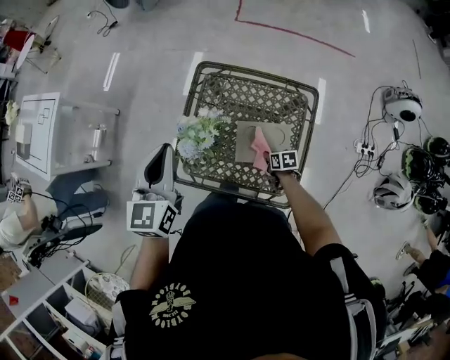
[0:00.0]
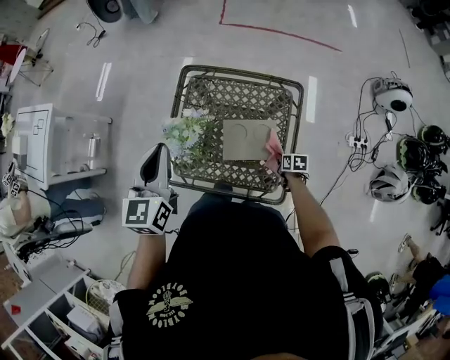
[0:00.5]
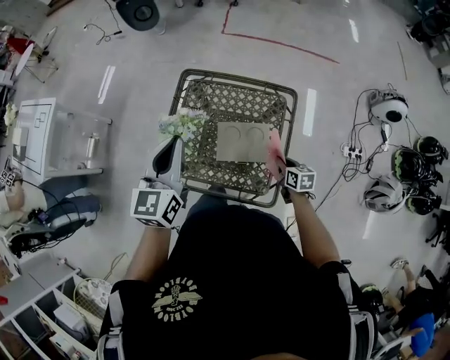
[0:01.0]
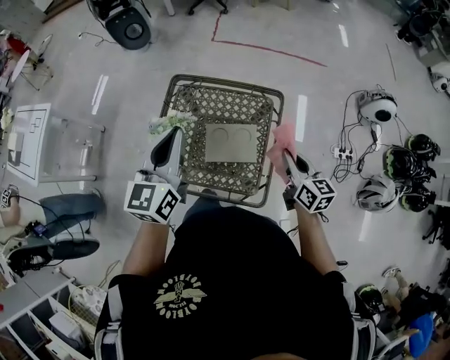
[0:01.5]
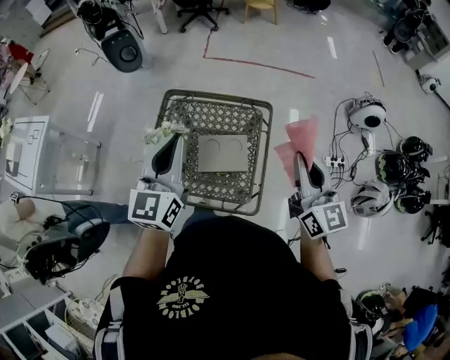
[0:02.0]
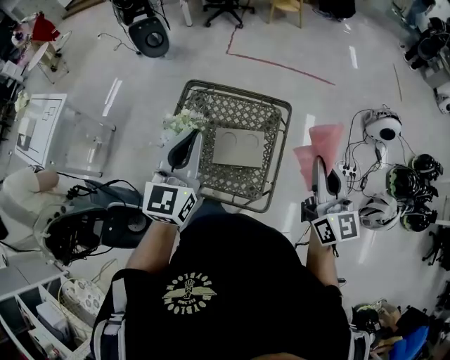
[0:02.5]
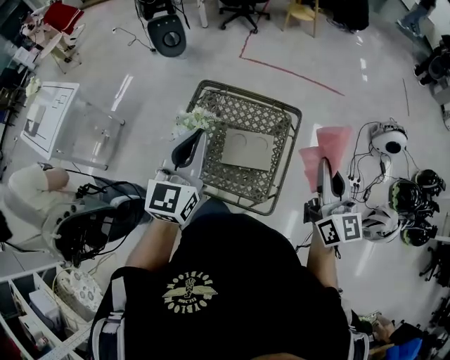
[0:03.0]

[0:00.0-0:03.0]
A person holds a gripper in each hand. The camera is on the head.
0:00.0 to 0:01.5: The right gripper is displaced upward and to the right by about 35 cm, and points its fingers approximately 40 degrees further upward, while the left gripper shifts some 15 cm to the right and backward.
0:01.5 to 0:03.0: The right gripper travels upward by about 20 cm, and rotates some 30 degrees; the left gripper goes some 5 cm backward.

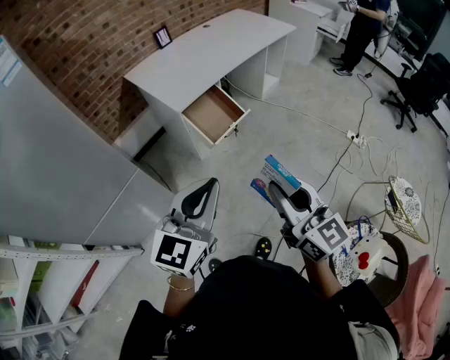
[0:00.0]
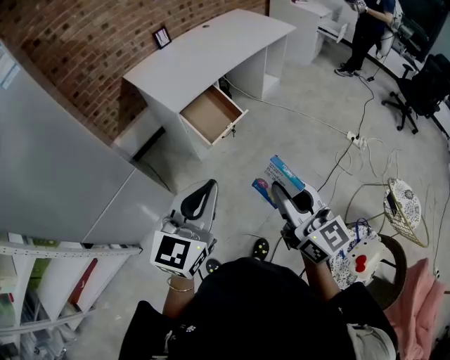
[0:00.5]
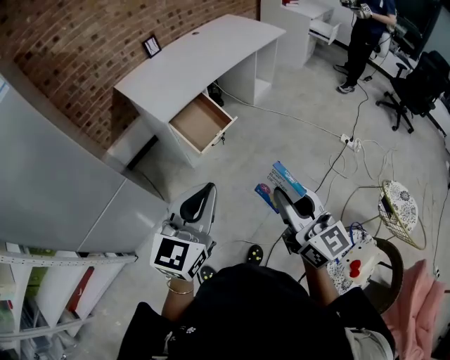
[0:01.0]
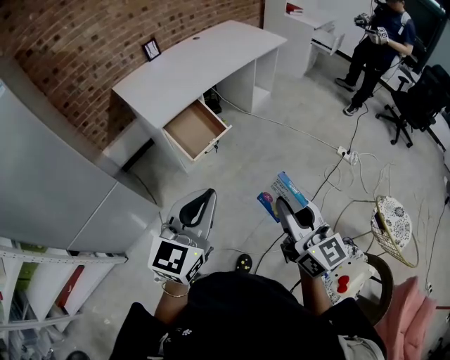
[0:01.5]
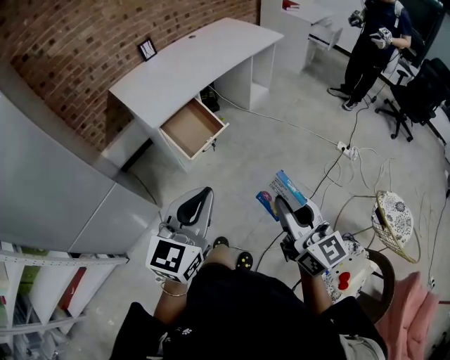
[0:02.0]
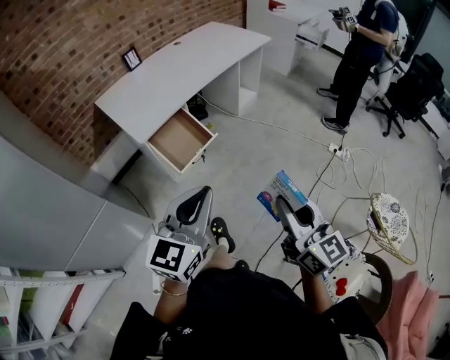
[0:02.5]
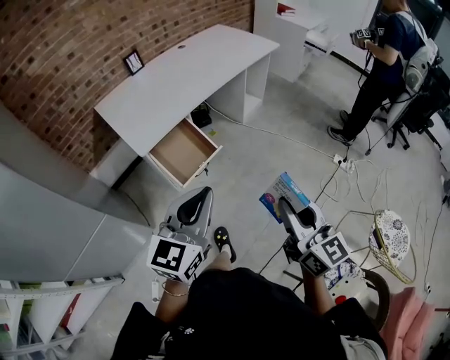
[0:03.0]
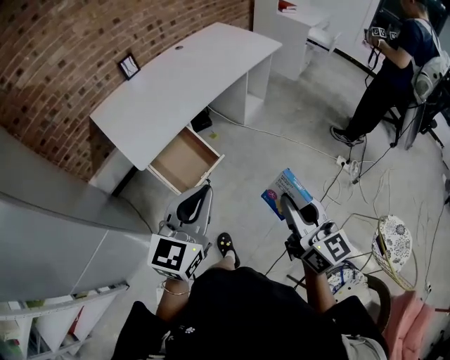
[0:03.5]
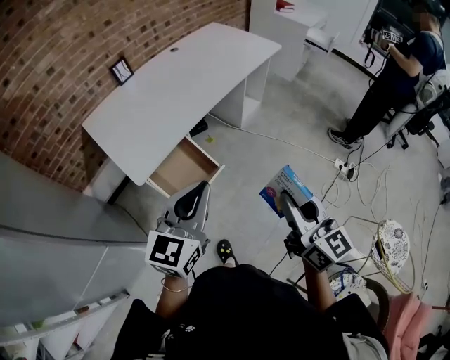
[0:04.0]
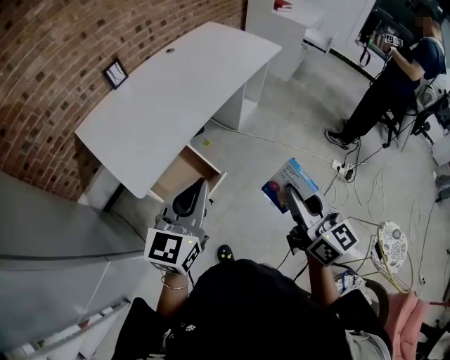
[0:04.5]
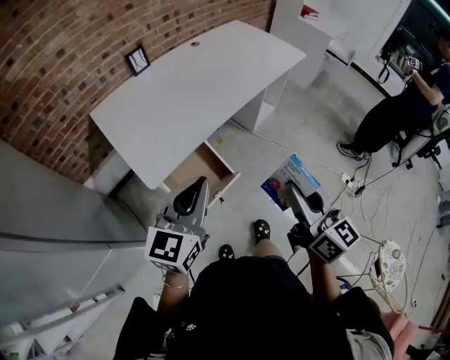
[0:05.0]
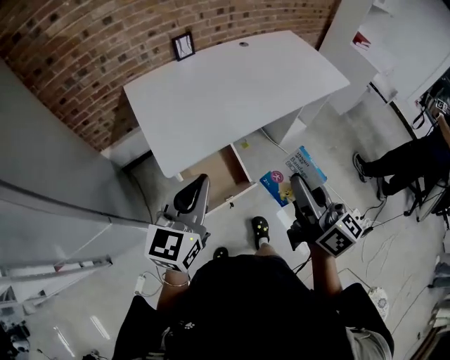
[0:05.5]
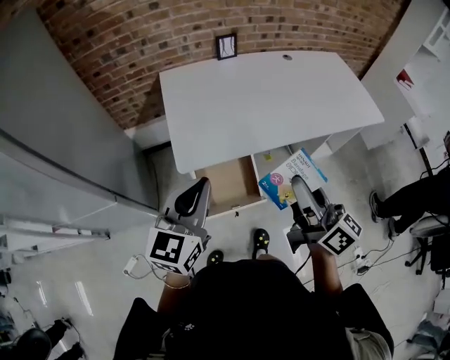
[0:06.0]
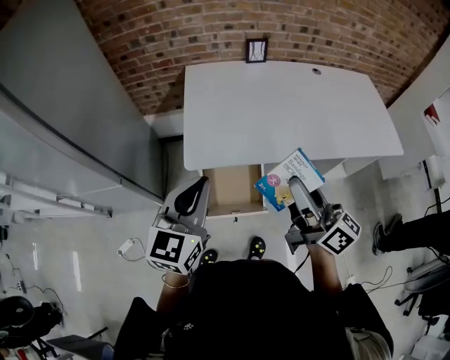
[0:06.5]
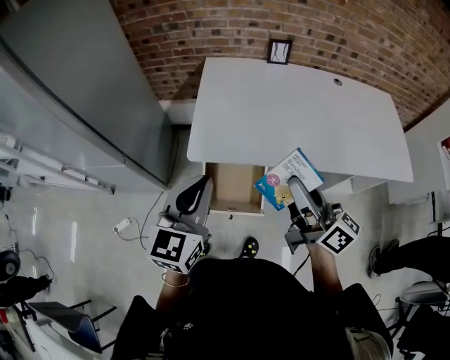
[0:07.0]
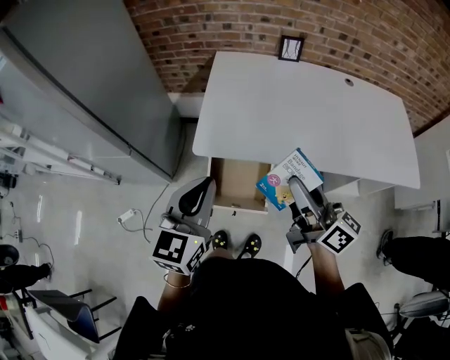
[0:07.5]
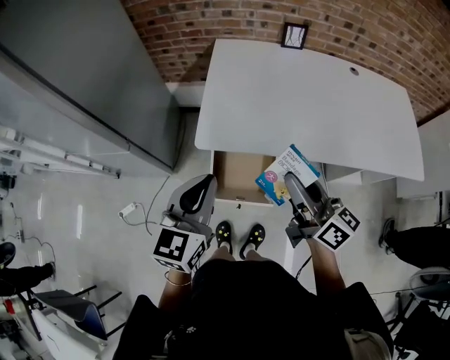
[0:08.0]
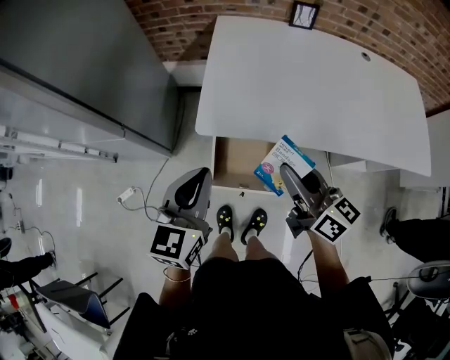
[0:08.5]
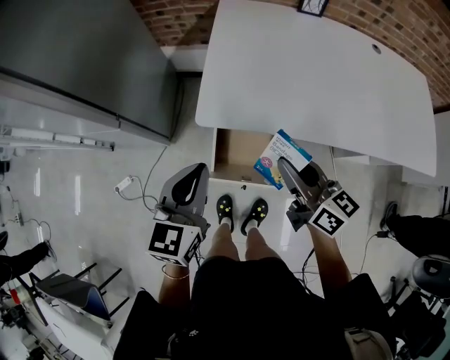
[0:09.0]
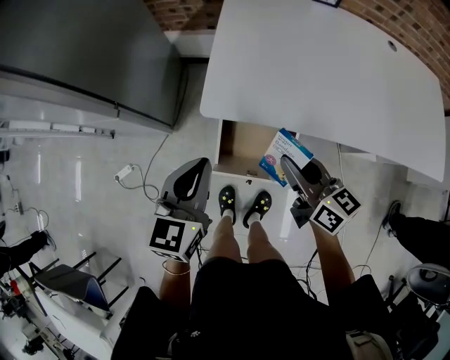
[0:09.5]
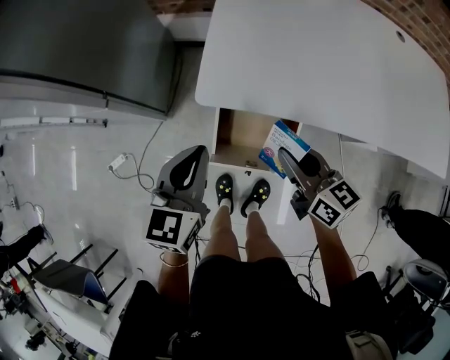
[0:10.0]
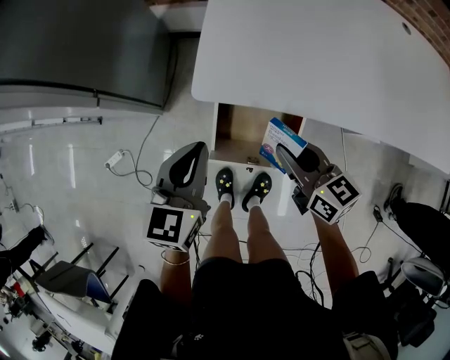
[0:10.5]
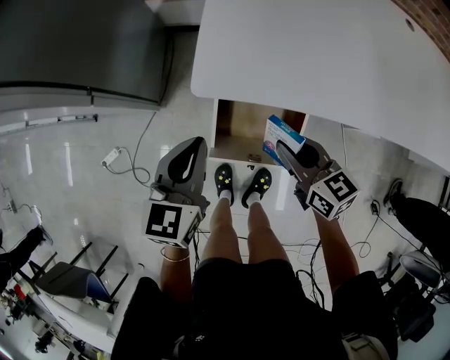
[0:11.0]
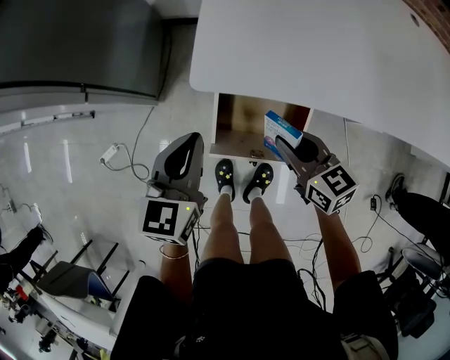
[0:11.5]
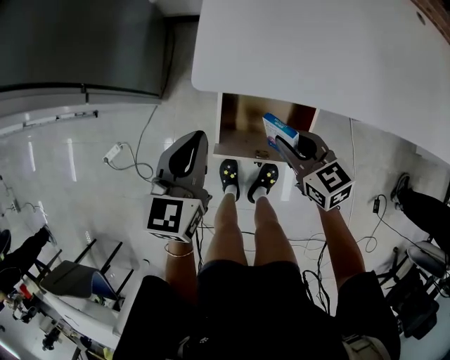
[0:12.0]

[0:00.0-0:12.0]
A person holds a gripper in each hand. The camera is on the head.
0:00.0 to 0:02.0: The grippers both shift to the right by about 15 cm.
0:02.0 to 0:04.0: The two grippers go approximately 30 cm forward.
0:04.0 to 0:06.0: The right gripper moves approximately 25 cm, and turns by approximately 50 degrees, while the left gripper moves roughly 15 cm, and changes its angle by approximately 40 degrees.
0:06.0 to 0:08.0: The left gripper swivels about 20 degrees. The right gripper heads forward and downward, covering approximately 10 cm, and turns by roughly 30 degrees.
0:08.0 to 0:10.0: The left gripper travels downward and forward by about 15 cm, while the right gripper moves downward, about 20 cm, and changes its angle by approximately 20 degrees.
0:10.0 to 0:12.0: Both grippers move downward, about 10 cm. The right gripper changes its angle by roughly 20 degrees.

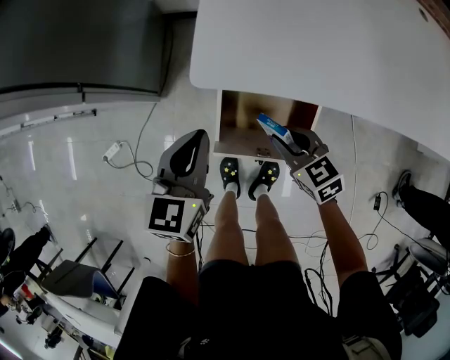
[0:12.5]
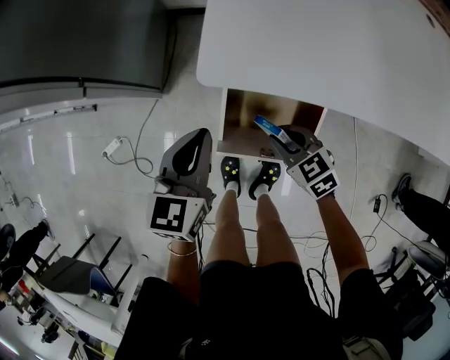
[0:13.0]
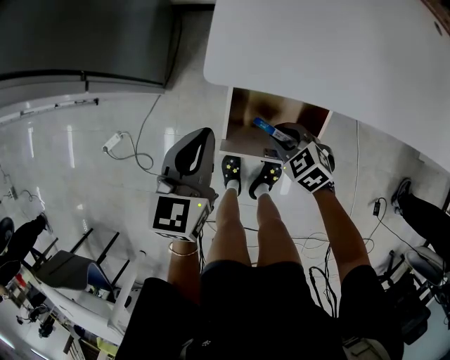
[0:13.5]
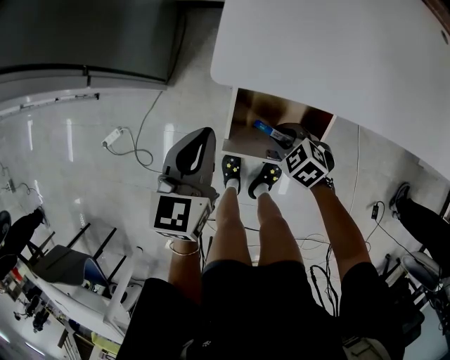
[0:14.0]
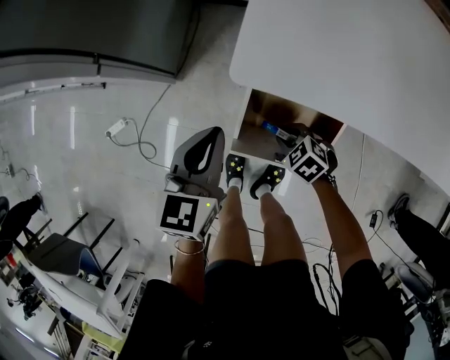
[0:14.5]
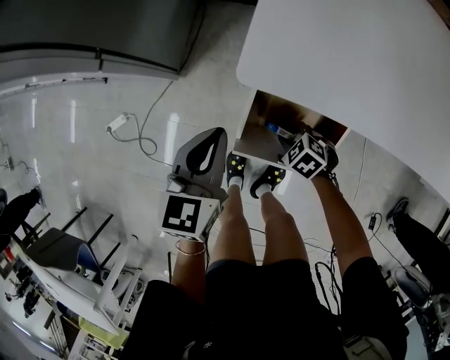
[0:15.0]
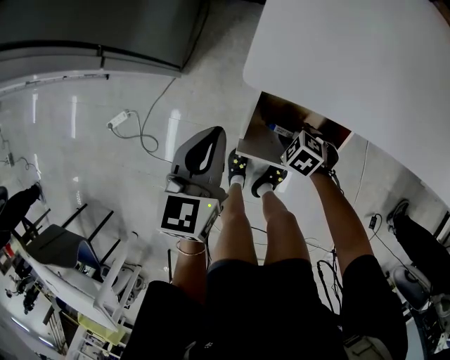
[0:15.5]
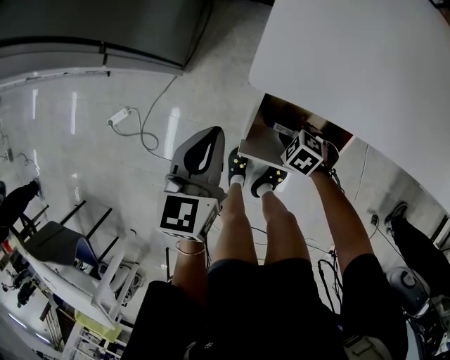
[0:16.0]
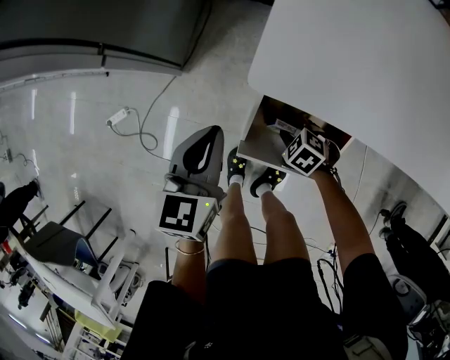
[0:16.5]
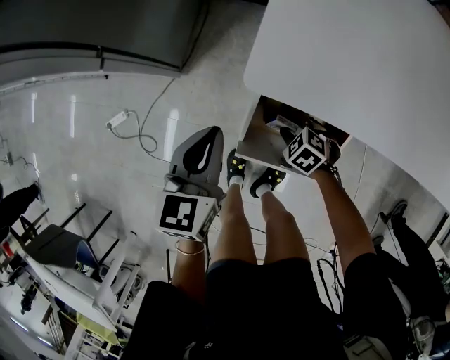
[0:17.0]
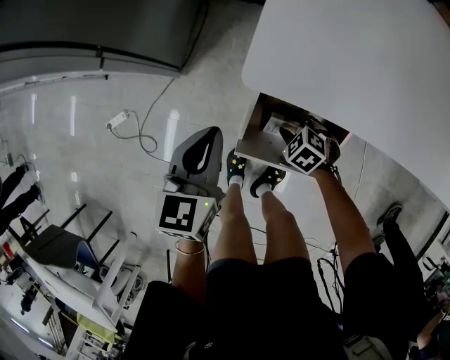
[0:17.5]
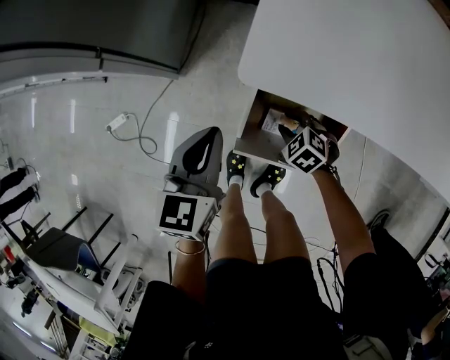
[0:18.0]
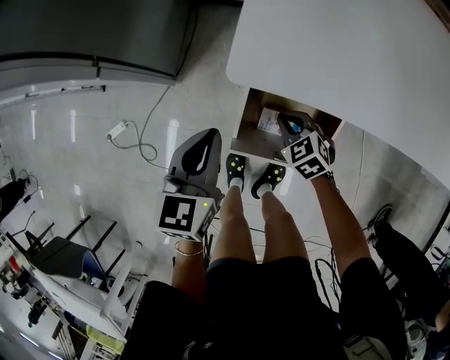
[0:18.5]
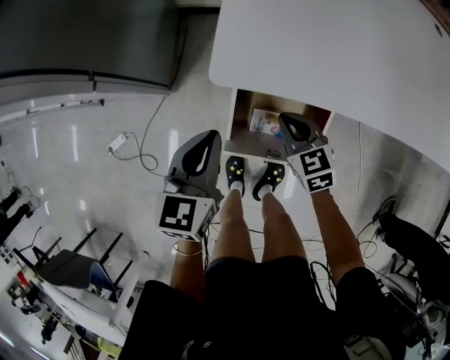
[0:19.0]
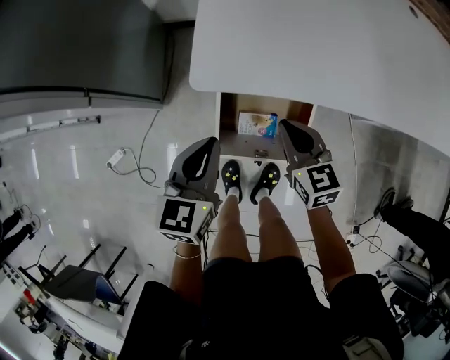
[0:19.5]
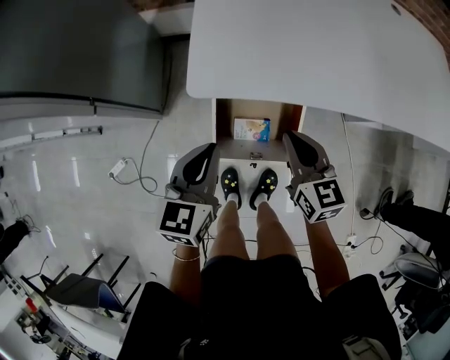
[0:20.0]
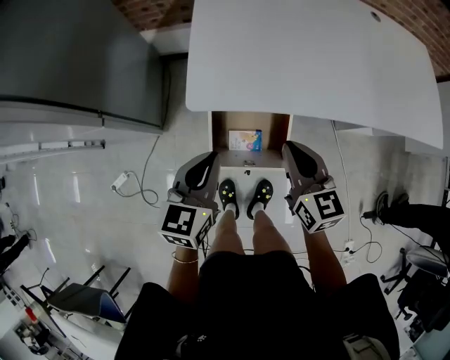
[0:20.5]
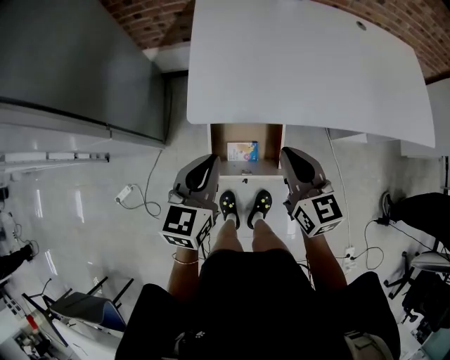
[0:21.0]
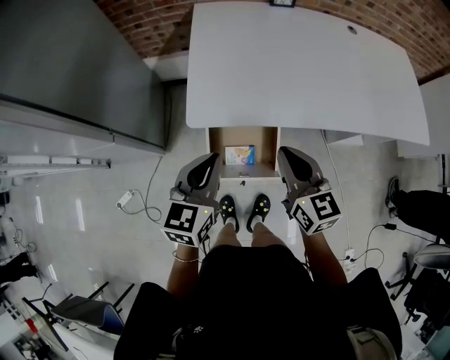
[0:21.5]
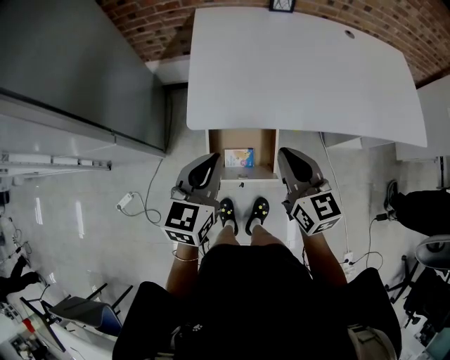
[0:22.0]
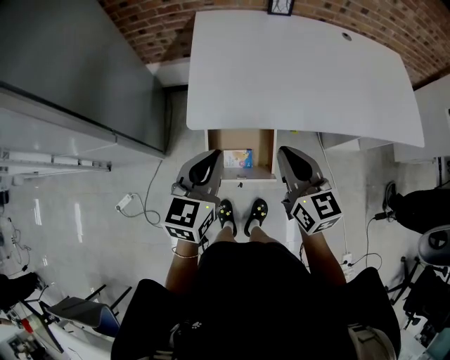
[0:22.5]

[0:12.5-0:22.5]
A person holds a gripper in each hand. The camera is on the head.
0:12.5 to 0:14.5: The right gripper shifts approximately 15 cm downward, and swivels some 40 degrees.
0:14.5 to 0:16.5: The grippers make only small movements.
0:16.5 to 0:18.5: The right gripper shifts about 10 cm upward, swivels approximately 30 degrees, and closes.
0:18.5 to 0:20.5: The left gripper is displaced upward and to the right by about 15 cm; the right gripper travels upward by approximately 30 cm, and tips its fingers upward by some 40 degrees.
0:20.5 to 0:22.5: Both grippers move upward, about 10 cm.

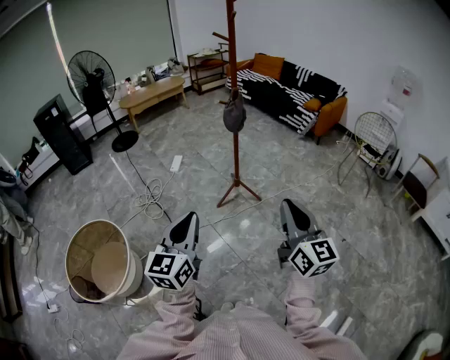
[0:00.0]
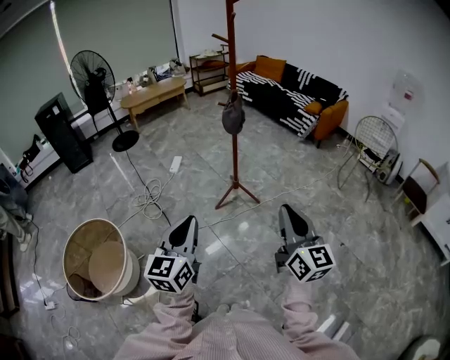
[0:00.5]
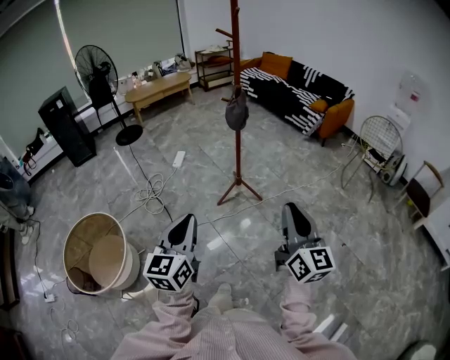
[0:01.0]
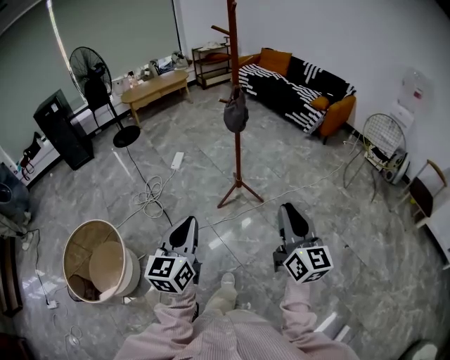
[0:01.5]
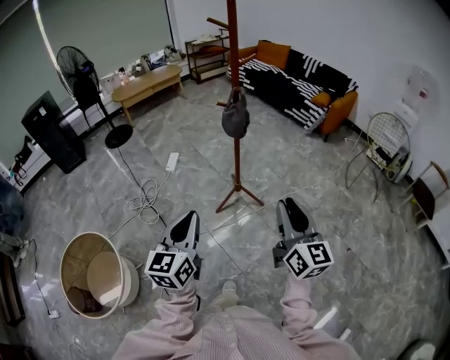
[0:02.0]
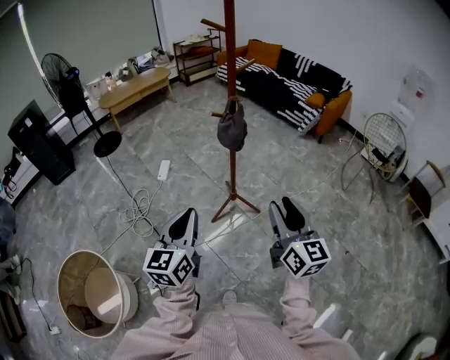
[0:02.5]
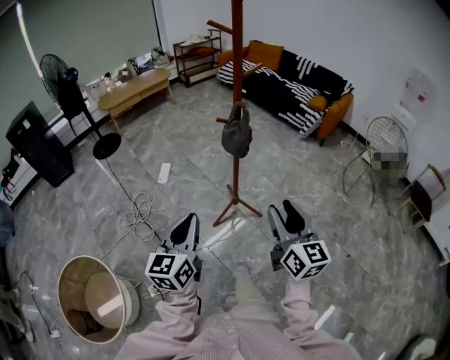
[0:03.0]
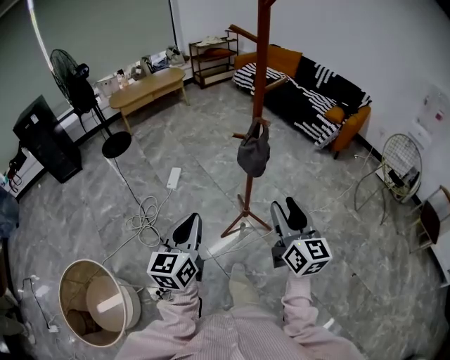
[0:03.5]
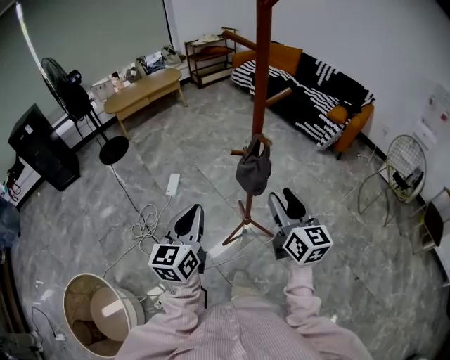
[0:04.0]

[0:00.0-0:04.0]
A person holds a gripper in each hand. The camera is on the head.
0:00.0 to 0:02.0: Both grippers move forward, roughly 20 cm.
0:02.0 to 0:04.0: Both grippers travel together forward, about 35 cm. The right gripper opens up.
